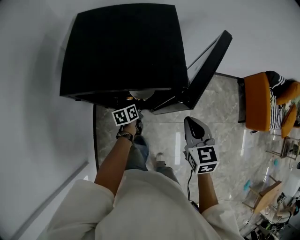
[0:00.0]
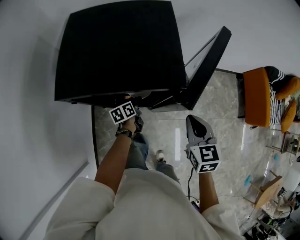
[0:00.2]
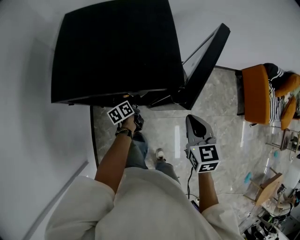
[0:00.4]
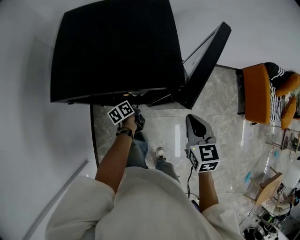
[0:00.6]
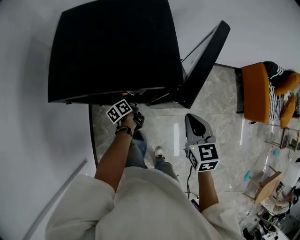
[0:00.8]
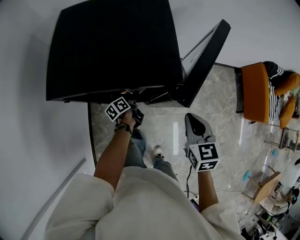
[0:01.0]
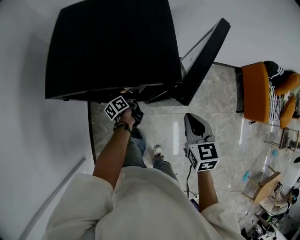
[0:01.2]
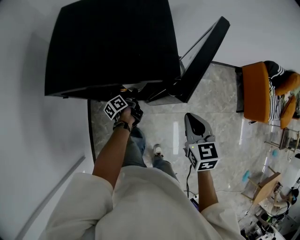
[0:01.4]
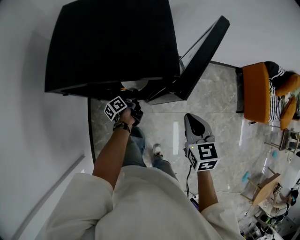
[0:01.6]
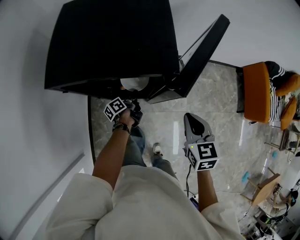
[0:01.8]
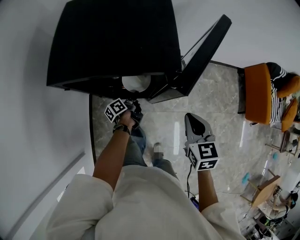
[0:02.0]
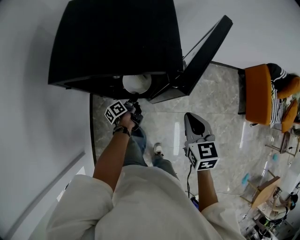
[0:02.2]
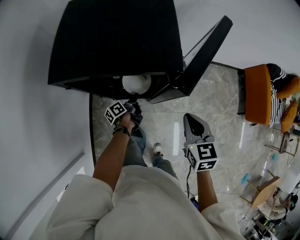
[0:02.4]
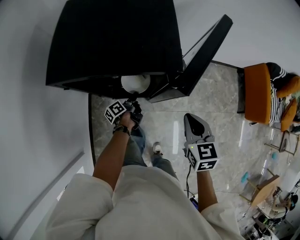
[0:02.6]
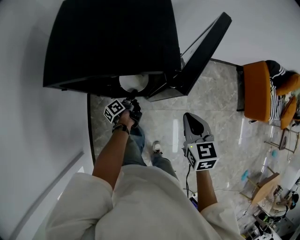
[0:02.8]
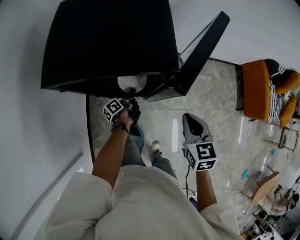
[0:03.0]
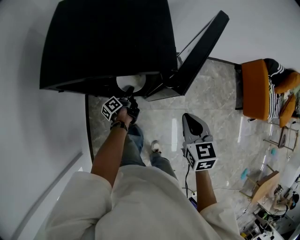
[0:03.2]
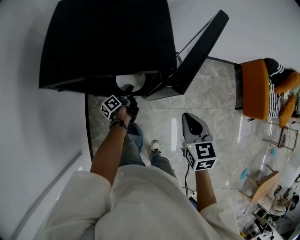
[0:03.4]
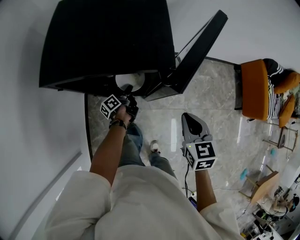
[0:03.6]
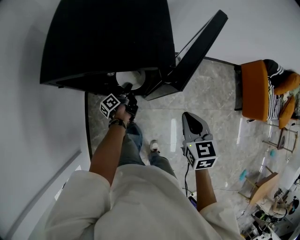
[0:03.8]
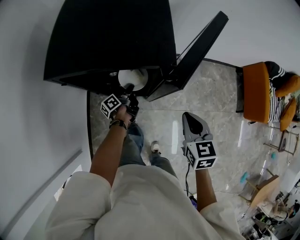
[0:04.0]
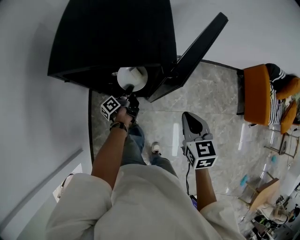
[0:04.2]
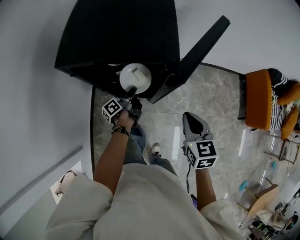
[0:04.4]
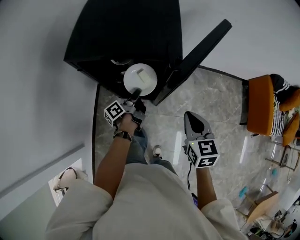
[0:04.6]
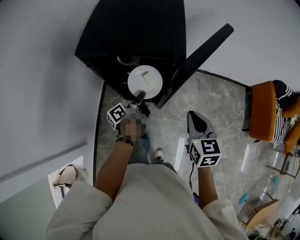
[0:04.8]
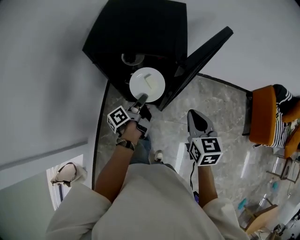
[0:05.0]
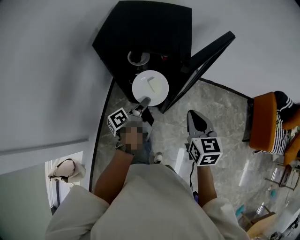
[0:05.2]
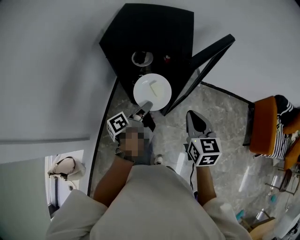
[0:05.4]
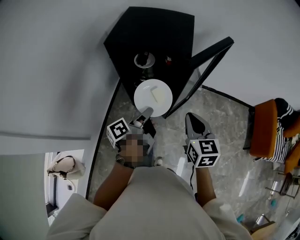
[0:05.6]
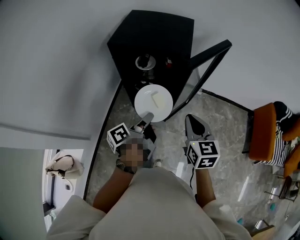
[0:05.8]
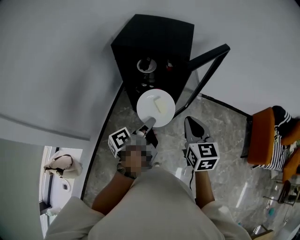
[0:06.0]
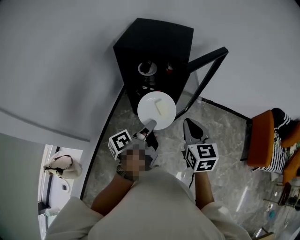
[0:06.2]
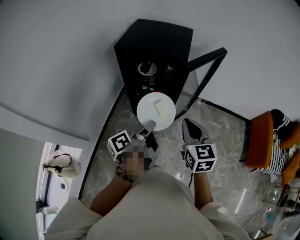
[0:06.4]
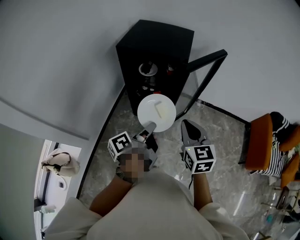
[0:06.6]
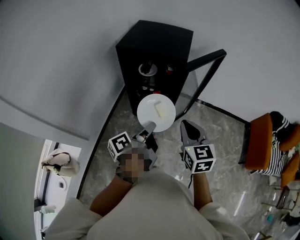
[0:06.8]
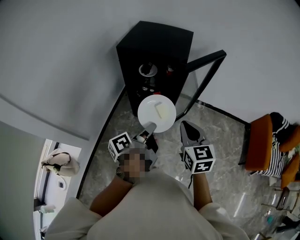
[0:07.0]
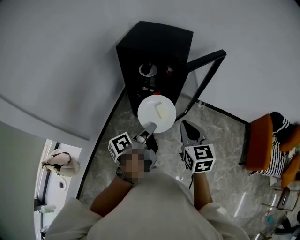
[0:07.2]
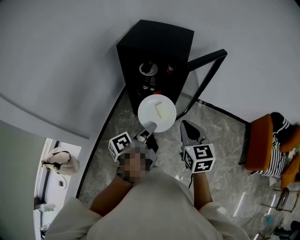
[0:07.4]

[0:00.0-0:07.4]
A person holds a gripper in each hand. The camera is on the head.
0.0 to 1.4 s: The left gripper rotates roughly 40 degrees.
1.4 to 3.0 s: The grippers move only a little.
3.0 to 4.4 s: The left gripper moves upward, about 10 cm.
4.4 to 6.0 s: The right gripper travels backward and upward by approximately 15 cm. The left gripper is displaced backward and upward by roughly 35 cm.
6.0 to 7.4 s: The left gripper changes place by roughly 5 cm.

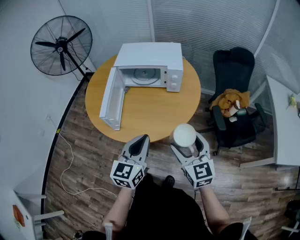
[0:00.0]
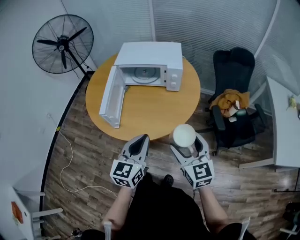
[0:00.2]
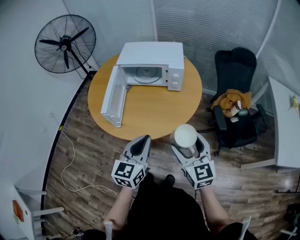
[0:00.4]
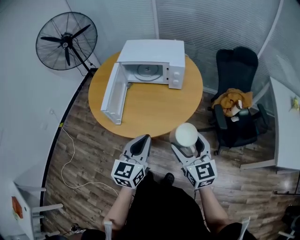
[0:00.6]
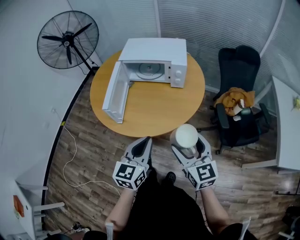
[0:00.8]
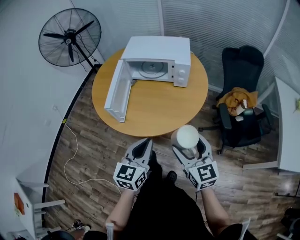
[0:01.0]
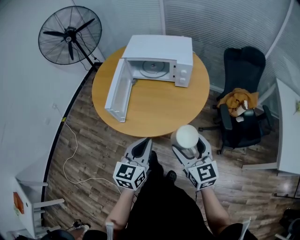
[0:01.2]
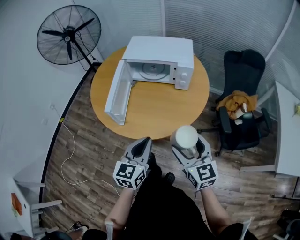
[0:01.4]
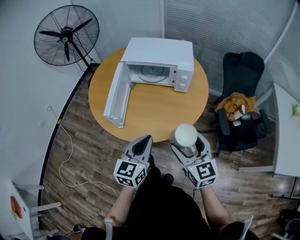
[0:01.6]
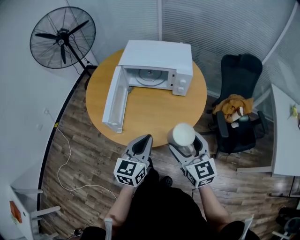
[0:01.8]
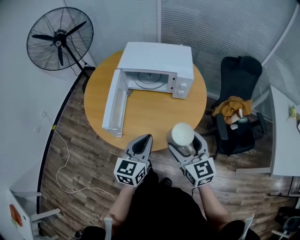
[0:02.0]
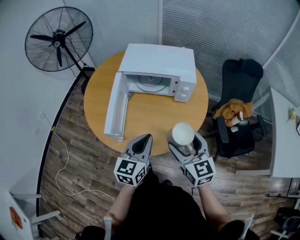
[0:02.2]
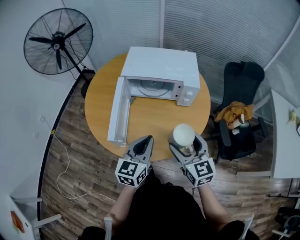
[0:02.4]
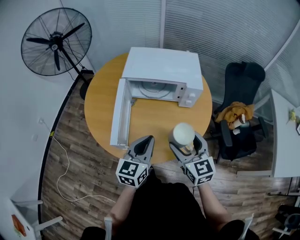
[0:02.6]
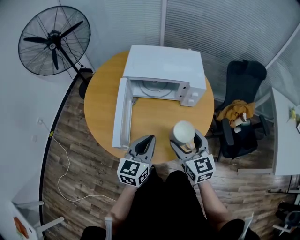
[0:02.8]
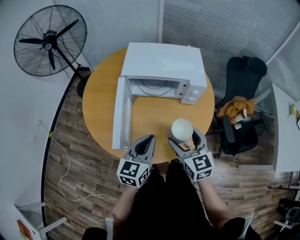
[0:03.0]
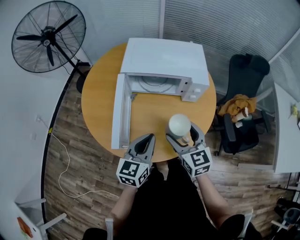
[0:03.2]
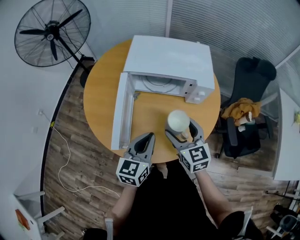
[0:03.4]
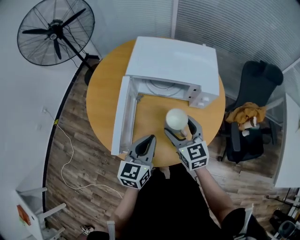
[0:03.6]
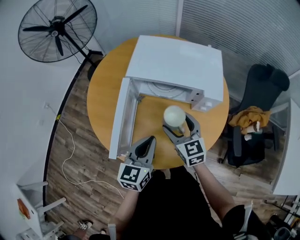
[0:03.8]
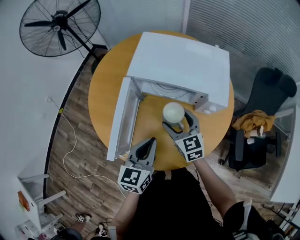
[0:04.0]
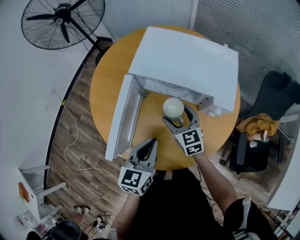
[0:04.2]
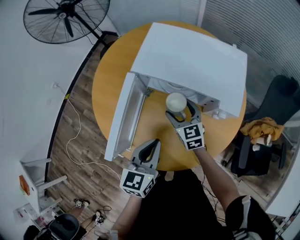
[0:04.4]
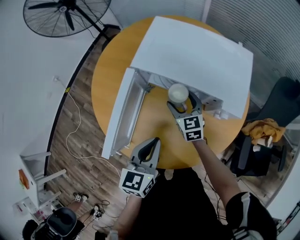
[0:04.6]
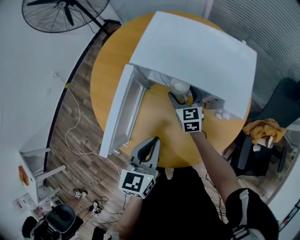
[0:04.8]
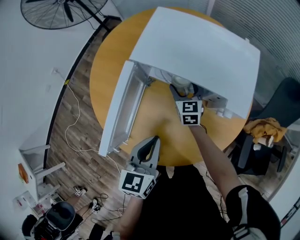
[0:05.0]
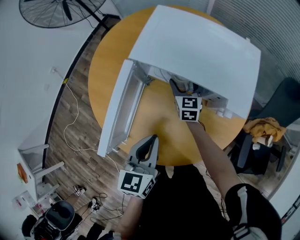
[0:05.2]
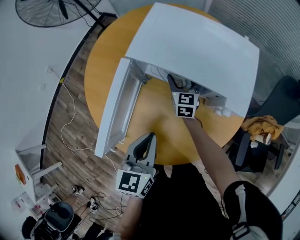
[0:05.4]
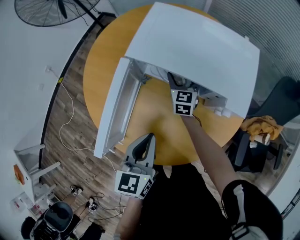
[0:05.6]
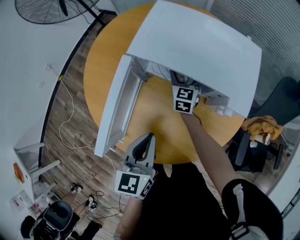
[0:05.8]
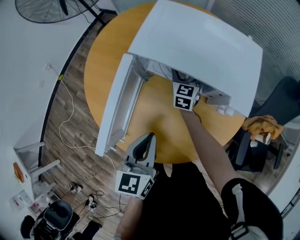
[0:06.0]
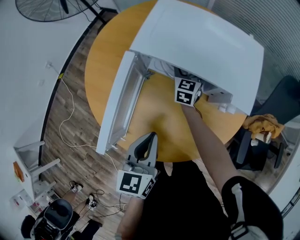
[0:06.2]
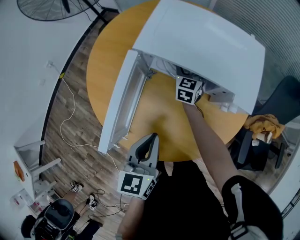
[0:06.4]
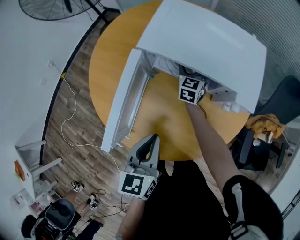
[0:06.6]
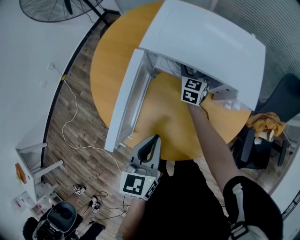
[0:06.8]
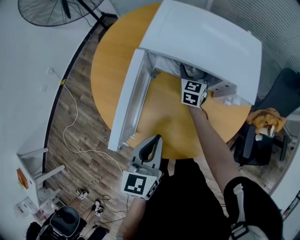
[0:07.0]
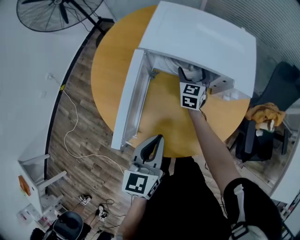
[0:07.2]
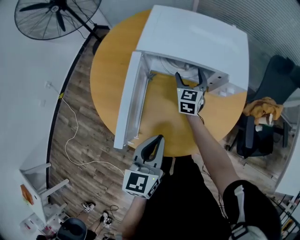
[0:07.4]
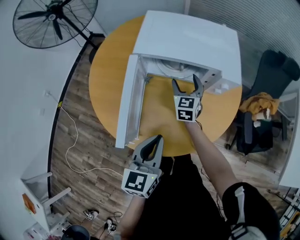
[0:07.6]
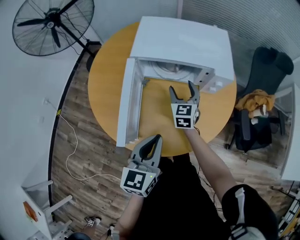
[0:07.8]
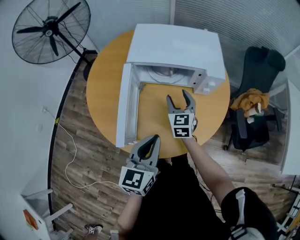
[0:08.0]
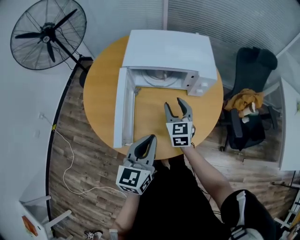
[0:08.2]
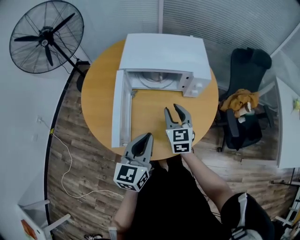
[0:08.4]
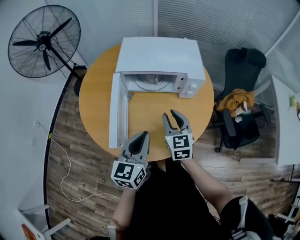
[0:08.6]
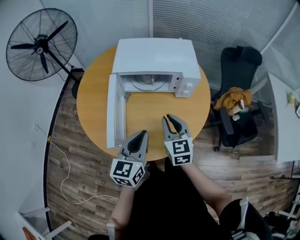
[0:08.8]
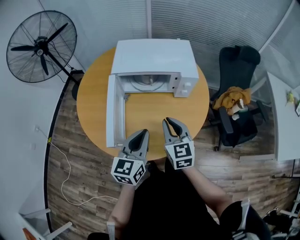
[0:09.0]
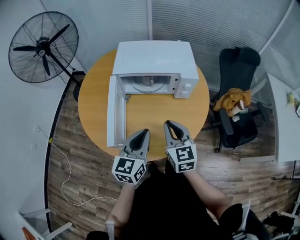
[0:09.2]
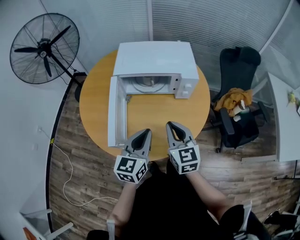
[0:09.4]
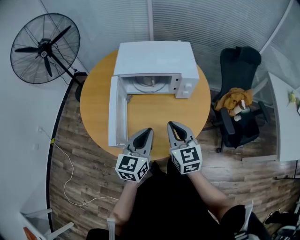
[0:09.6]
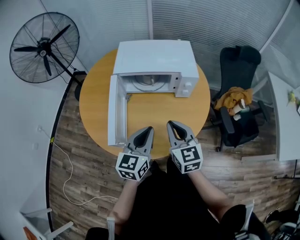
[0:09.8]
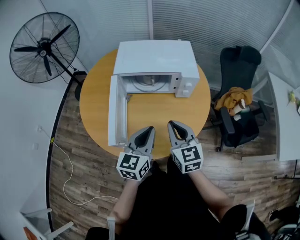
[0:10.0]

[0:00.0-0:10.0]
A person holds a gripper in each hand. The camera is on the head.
0.0 to 1.4 s: The grippers move only a little.
1.4 to 2.8 s: The two grippers go about 20 cm forward and to the left.
2.8 to 4.2 s: The right gripper is displaced forward and downward by about 25 cm. The left gripper goes approximately 10 cm forward.
4.2 to 5.8 s: The right gripper moves forward and downward, approximately 20 cm, and turns by approximately 20 degrees.
5.8 to 7.2 s: The left gripper goes roughly 5 cm backward.
7.2 to 8.6 s: The right gripper shifts about 30 cm backward and upward, and closes up. Meanwhile the left gripper changes place by about 5 cm, and turns by some 20 degrees.
8.6 to 10.0 s: The right gripper heads backward, covering roughly 5 cm.

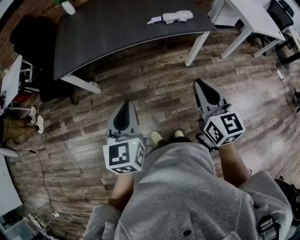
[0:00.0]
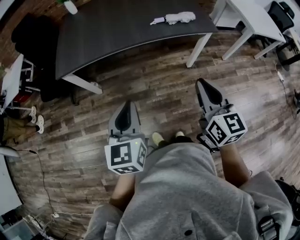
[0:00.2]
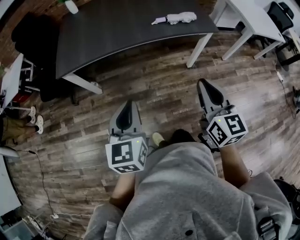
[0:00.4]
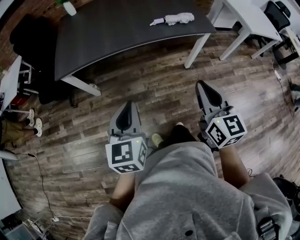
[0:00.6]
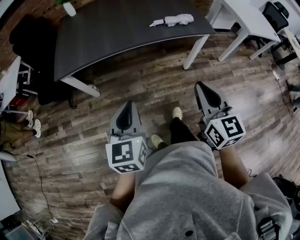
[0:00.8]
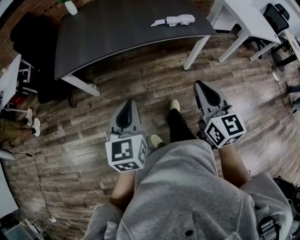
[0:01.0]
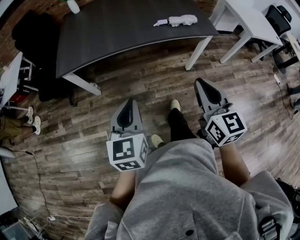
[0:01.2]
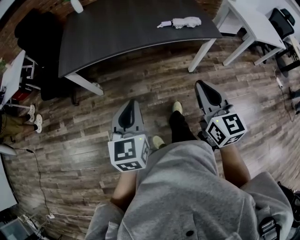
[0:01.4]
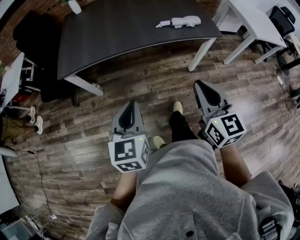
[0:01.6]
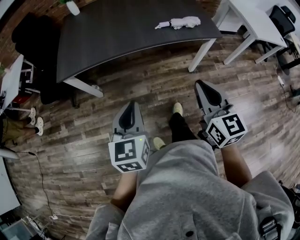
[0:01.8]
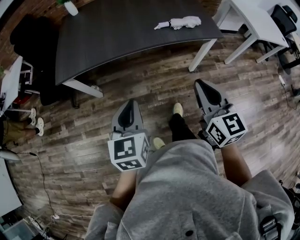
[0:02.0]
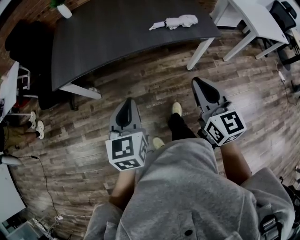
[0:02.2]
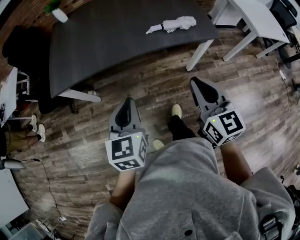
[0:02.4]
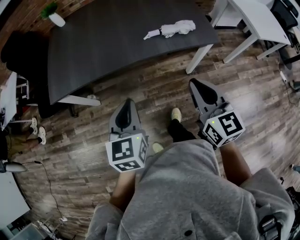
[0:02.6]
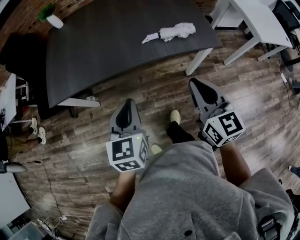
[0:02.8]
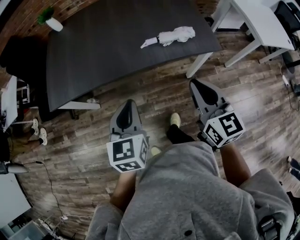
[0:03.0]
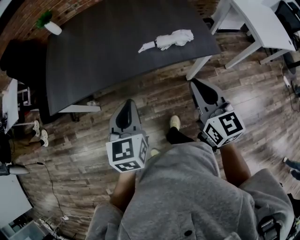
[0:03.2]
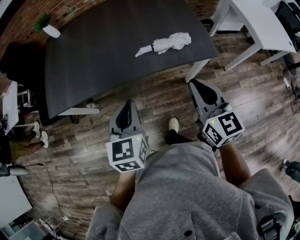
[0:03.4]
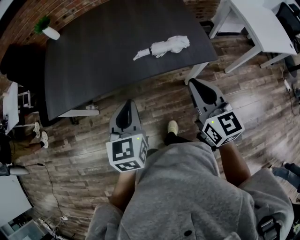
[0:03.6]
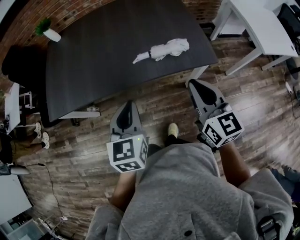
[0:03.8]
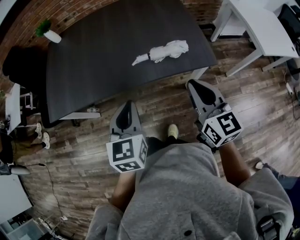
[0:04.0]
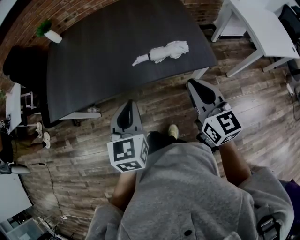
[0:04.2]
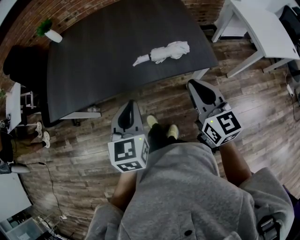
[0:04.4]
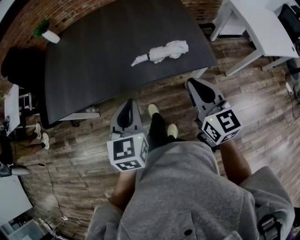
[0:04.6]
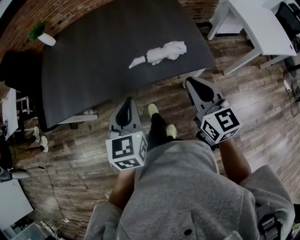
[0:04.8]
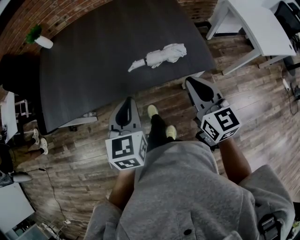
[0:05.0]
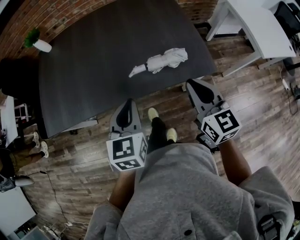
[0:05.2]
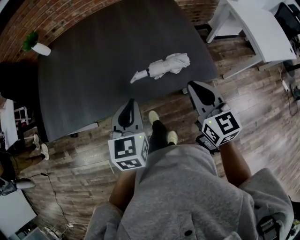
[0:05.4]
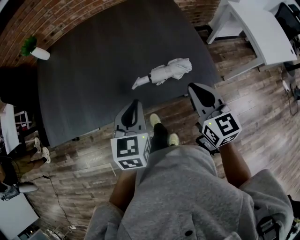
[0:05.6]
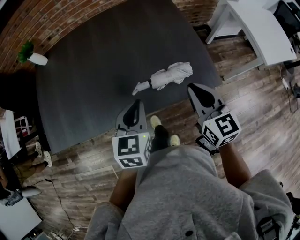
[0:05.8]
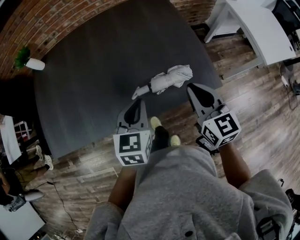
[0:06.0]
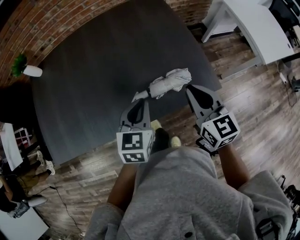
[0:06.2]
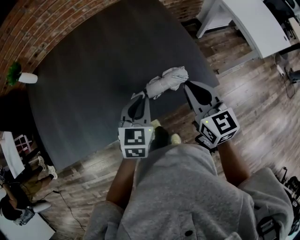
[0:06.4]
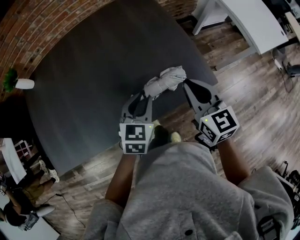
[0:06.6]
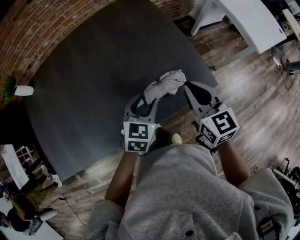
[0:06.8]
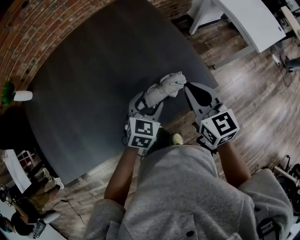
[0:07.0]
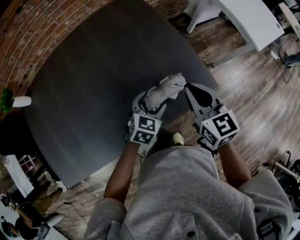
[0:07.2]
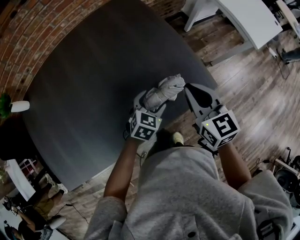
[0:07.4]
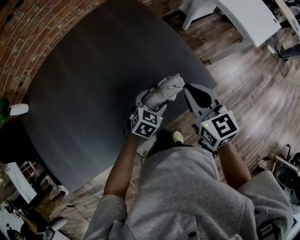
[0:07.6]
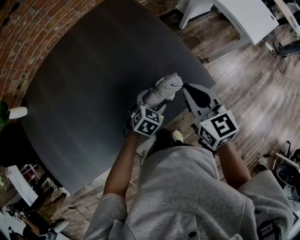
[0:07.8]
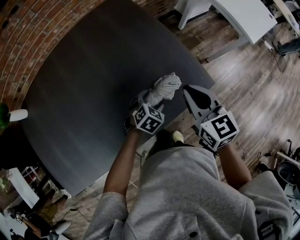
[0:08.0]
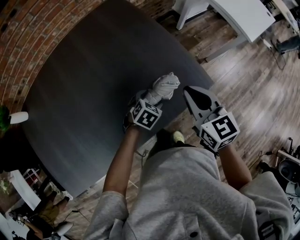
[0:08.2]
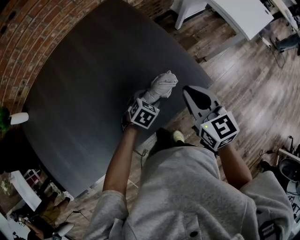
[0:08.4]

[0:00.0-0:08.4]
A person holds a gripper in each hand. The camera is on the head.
0.0 to 1.4 s: The right gripper is displaced to the left by about 5 cm.
1.4 to 2.8 s: Both grippers move forward and to the right, approximately 20 cm.
2.8 to 4.2 s: The two grippers go about 15 cm to the right and forward.
4.2 to 5.6 s: The two grippers go about 15 cm forward.
5.6 to 7.0 s: The right gripper travels forward by about 10 cm. Meanwhile the left gripper moves forward, downward and to the right, approximately 20 cm, turns by about 40 degrees, and opens its fingers.
7.0 to 8.4 s: The left gripper heads downward, covering roughly 10 cm, and swivels some 30 degrees.
